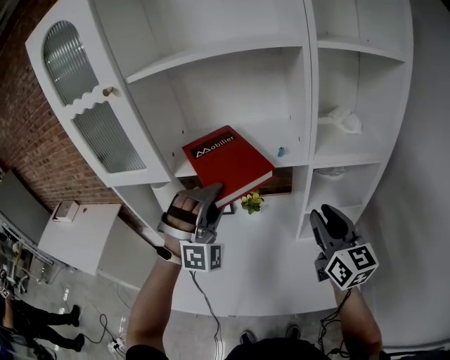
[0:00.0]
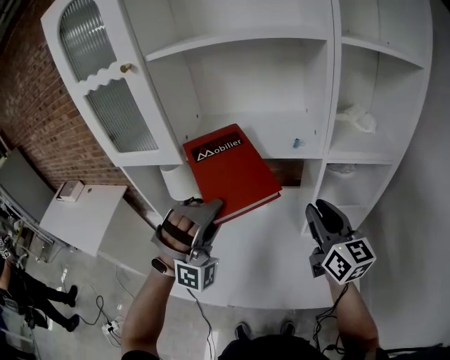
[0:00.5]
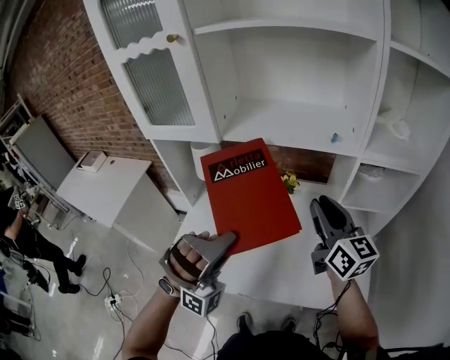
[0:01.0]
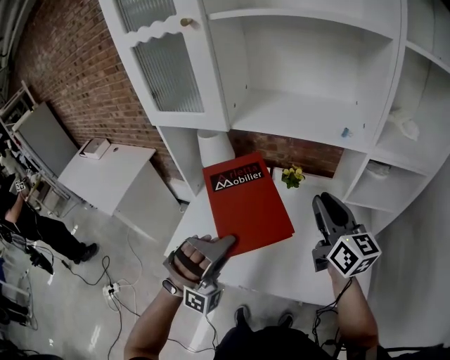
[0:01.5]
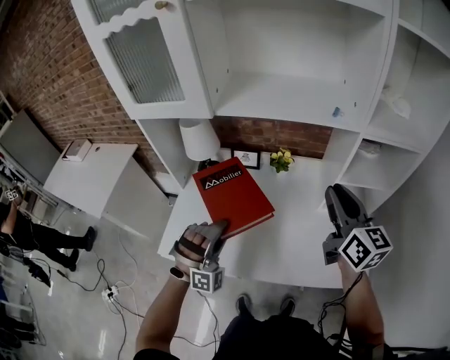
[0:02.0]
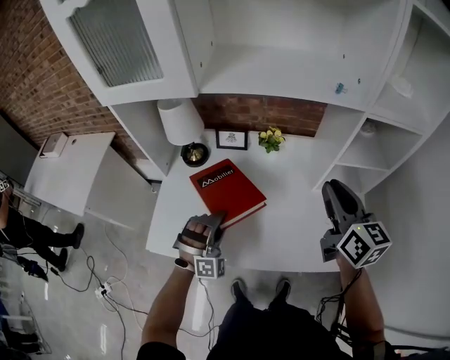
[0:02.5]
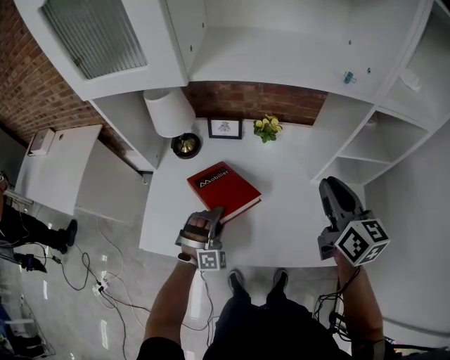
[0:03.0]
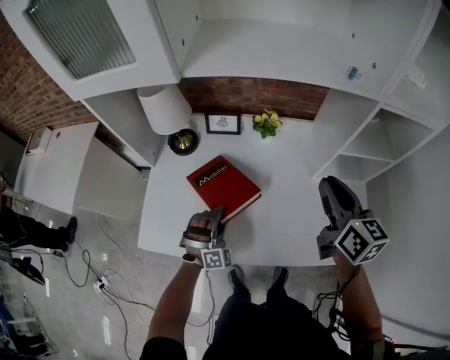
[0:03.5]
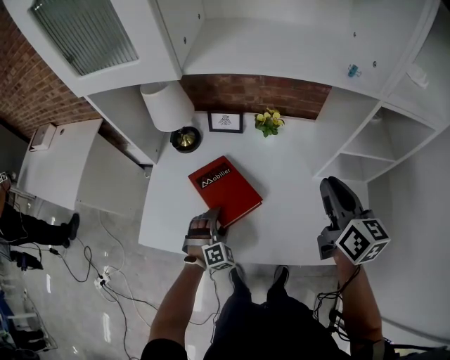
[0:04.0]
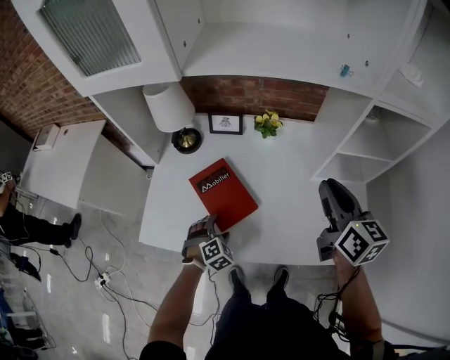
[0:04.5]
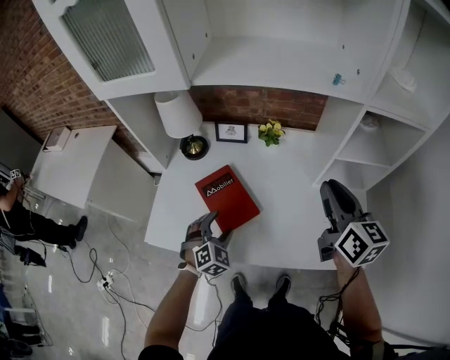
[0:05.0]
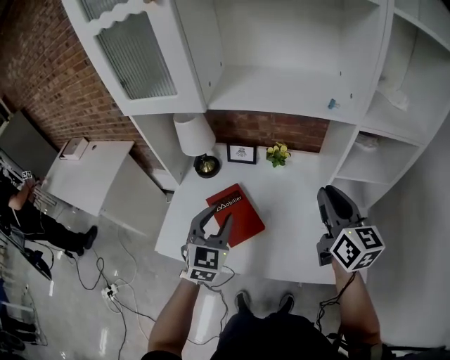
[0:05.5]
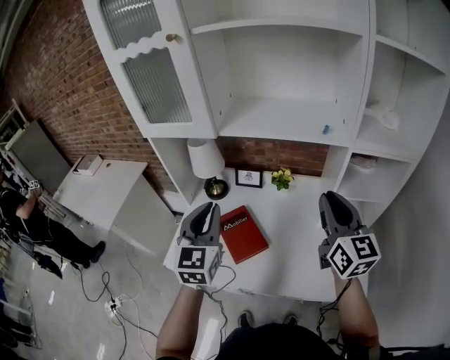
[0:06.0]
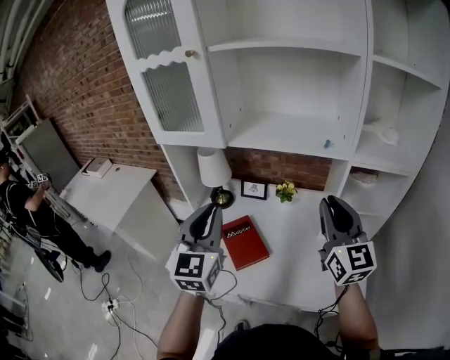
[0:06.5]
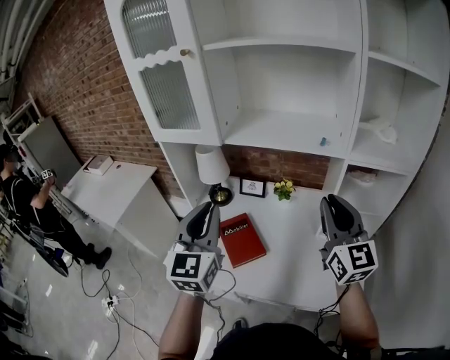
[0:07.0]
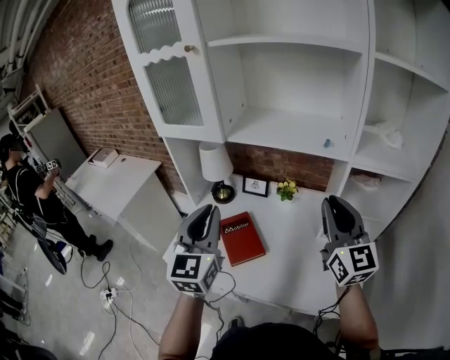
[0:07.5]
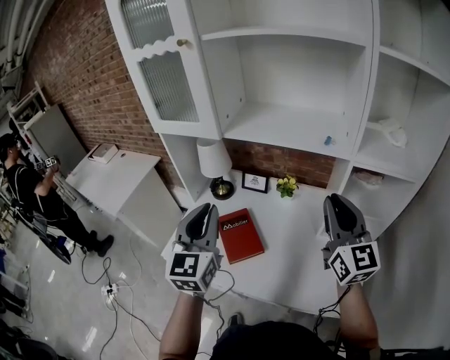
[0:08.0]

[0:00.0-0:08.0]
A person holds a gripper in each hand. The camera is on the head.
0.0 to 2.0 s: The right gripper shifts about 10 cm to the left. The left gripper goes roughly 25 cm downward, backward and to the left.
2.0 to 4.0 s: The right gripper shifts roughly 10 cm downward. The left gripper moves downward, about 25 cm, tilts its fingers roughly 30 degrees downward, and opens up.
4.0 to 6.0 s: The left gripper is displaced upward by roughly 40 cm, rotates around the line of its fingers by roughly 50 degrees, counterclockwise from behind, and closes up; the right gripper heads upward, covering about 15 cm, and changes its angle by approximately 20 degrees.
6.0 to 8.0 s: The left gripper changes place by roughly 5 cm.

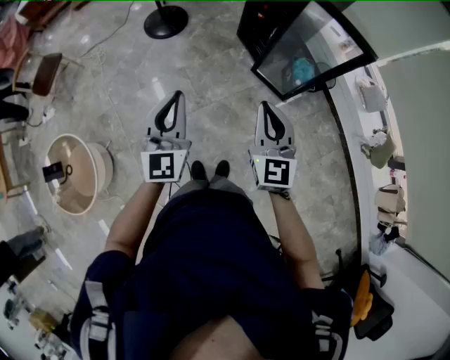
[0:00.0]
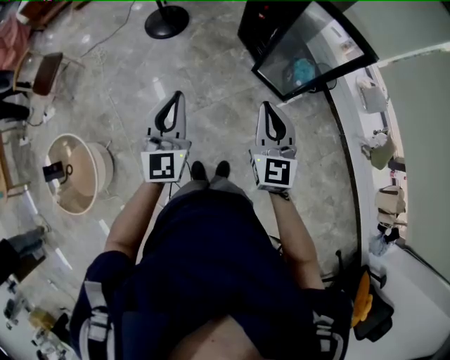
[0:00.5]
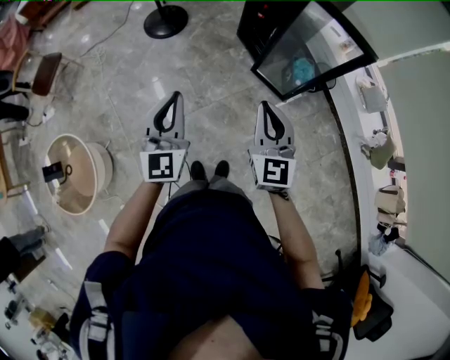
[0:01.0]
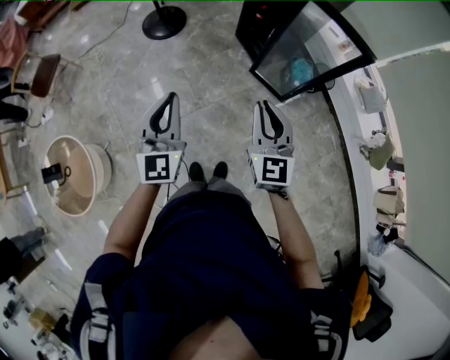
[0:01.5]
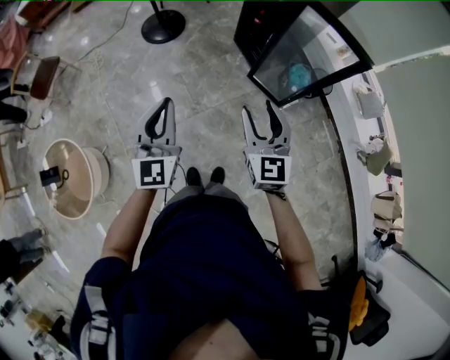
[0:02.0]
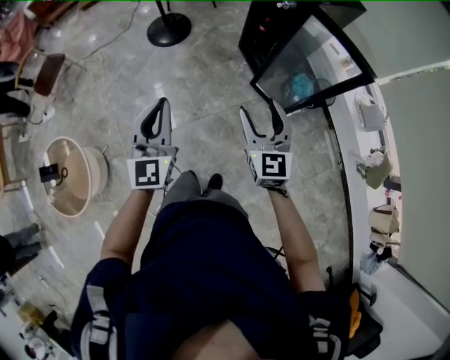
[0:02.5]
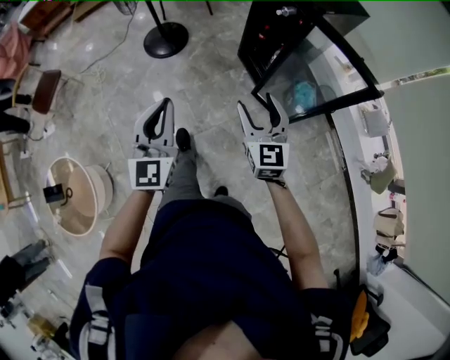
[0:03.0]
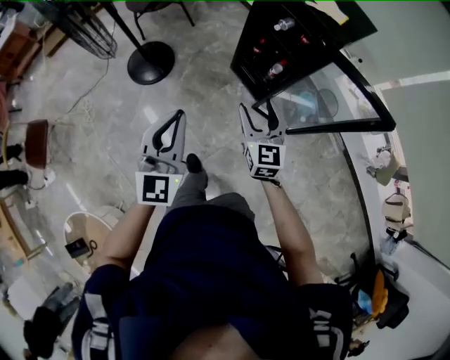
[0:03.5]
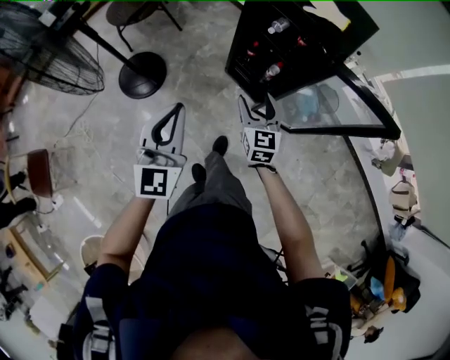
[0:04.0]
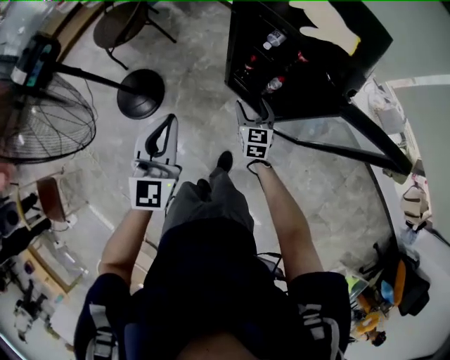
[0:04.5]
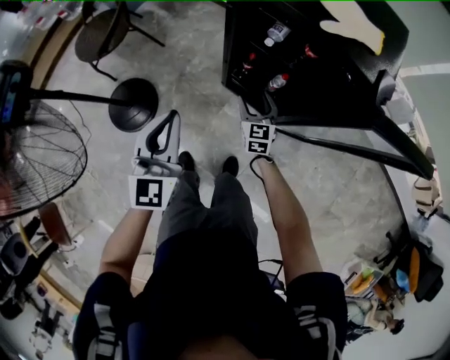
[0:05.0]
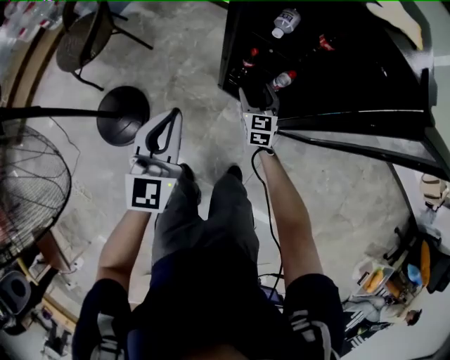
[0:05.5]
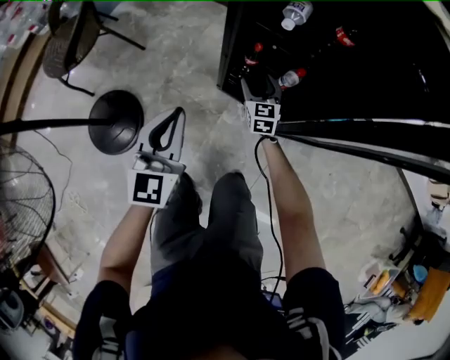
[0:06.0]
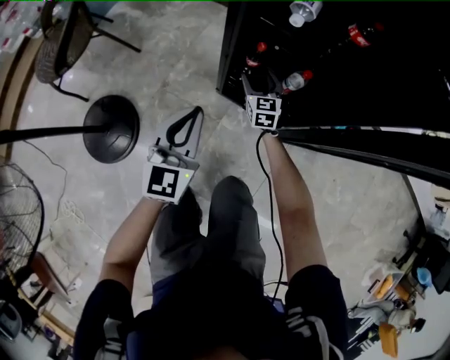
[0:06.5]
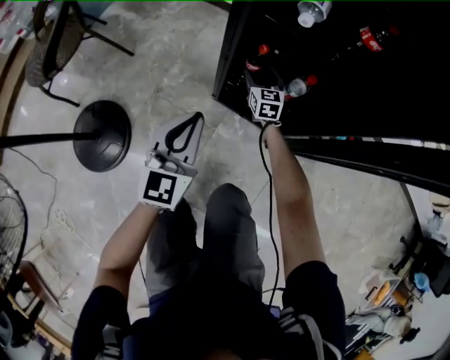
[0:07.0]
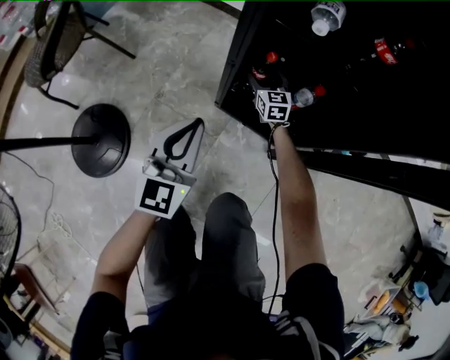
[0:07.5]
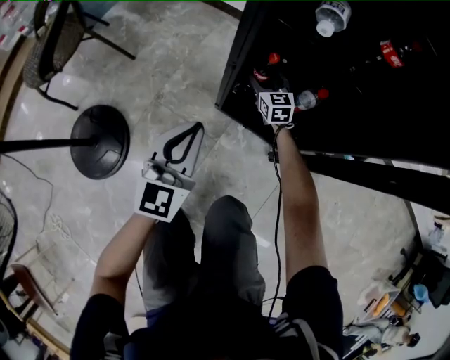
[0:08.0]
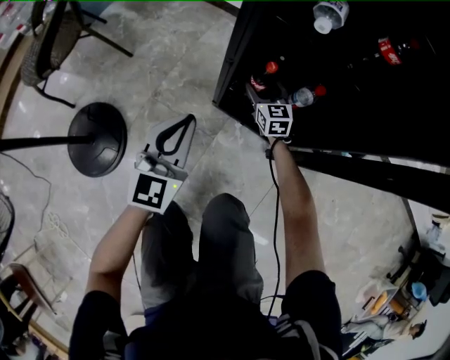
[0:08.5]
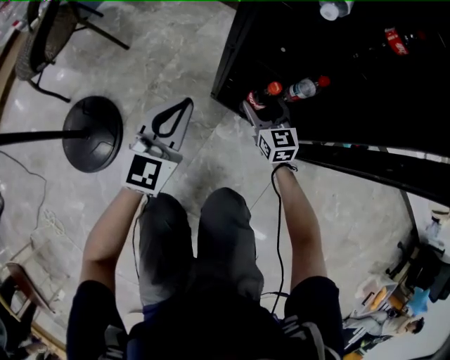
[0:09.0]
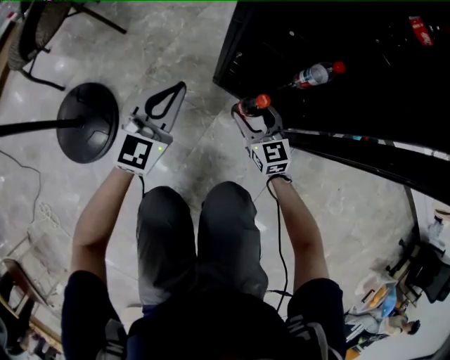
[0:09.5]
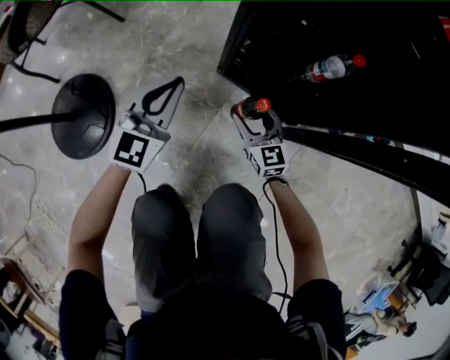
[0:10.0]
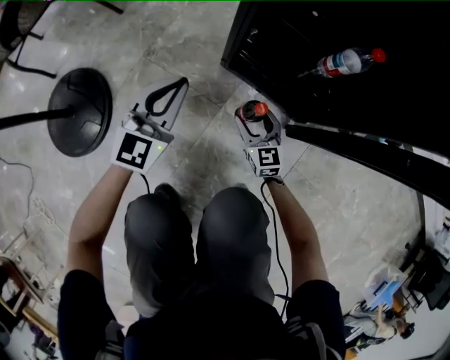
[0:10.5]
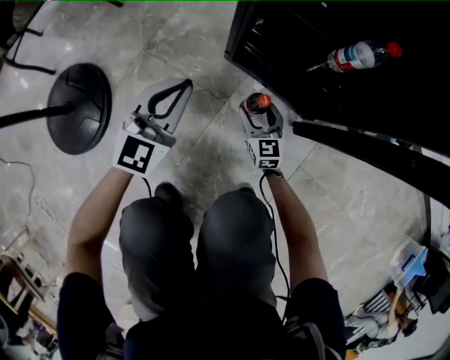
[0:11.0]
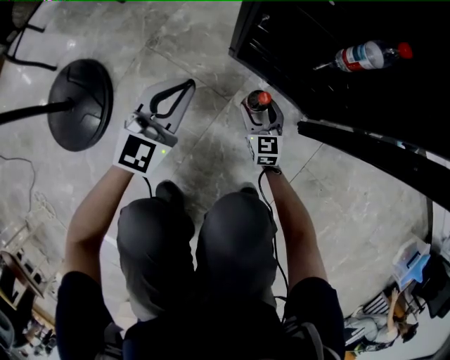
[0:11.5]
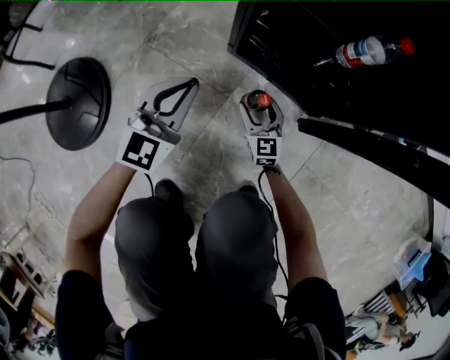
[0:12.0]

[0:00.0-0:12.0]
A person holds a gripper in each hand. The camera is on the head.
0.0 to 2.0 s: The right gripper opens its fingers.
2.0 to 4.0 s: Both grippers are carried some 50 cm. The left gripper turns by about 30 degrees. The right gripper rotates roughly 30 degrees.
4.0 to 6.0 s: Both grippers travel together downward and forward, some 50 cm.
6.0 to 8.0 s: The right gripper shifts approximately 20 cm downward and forward. Meanwhile the left gripper shifts approximately 15 cm downward.
8.0 to 10.0 s: The left gripper heads downward, covering about 15 cm. Meanwhile the right gripper shifts roughly 25 cm backward and downward.
10.0 to 12.0 s: Both grippers move downward, approximately 15 cm.

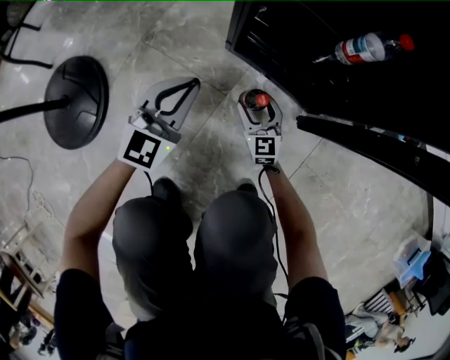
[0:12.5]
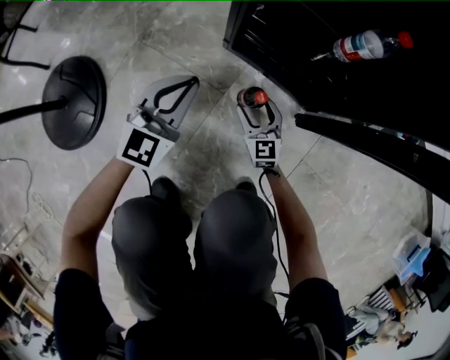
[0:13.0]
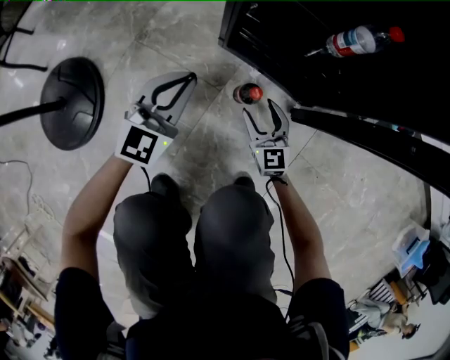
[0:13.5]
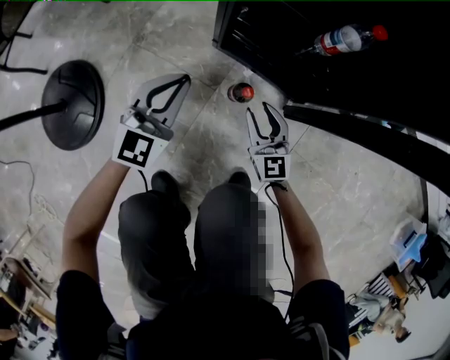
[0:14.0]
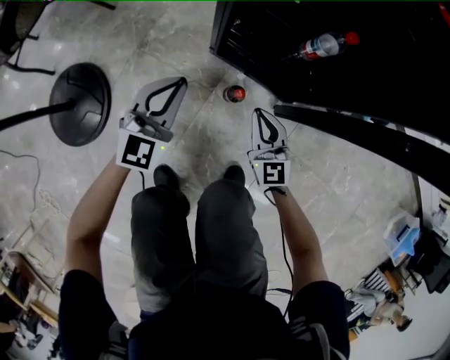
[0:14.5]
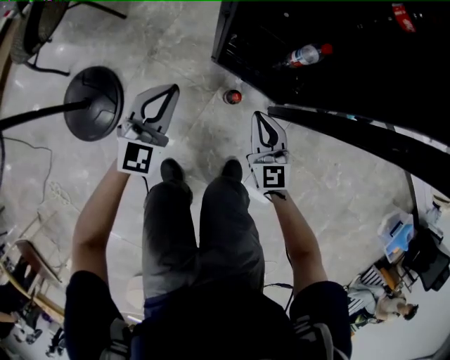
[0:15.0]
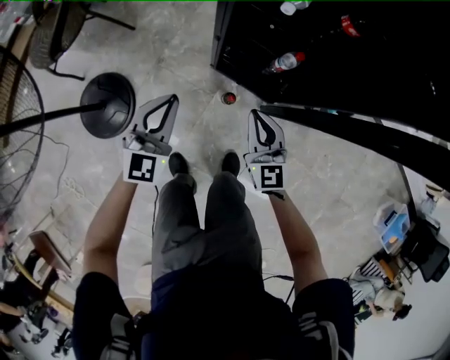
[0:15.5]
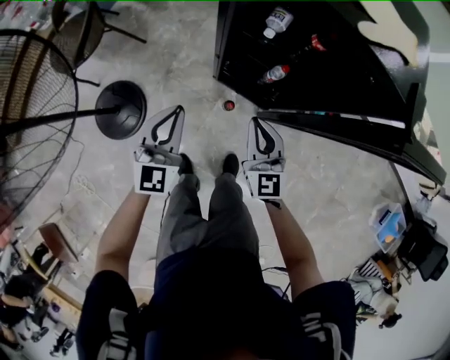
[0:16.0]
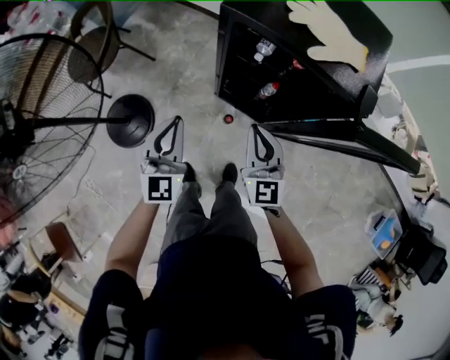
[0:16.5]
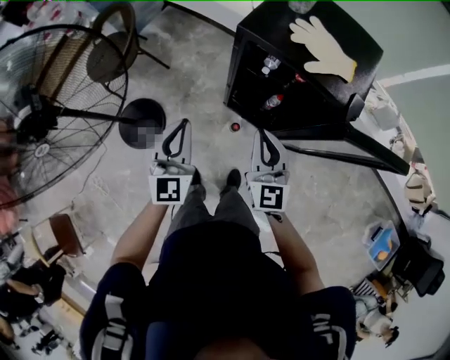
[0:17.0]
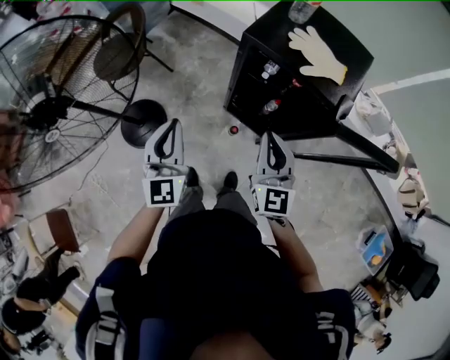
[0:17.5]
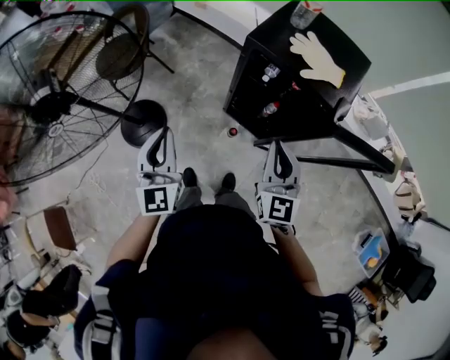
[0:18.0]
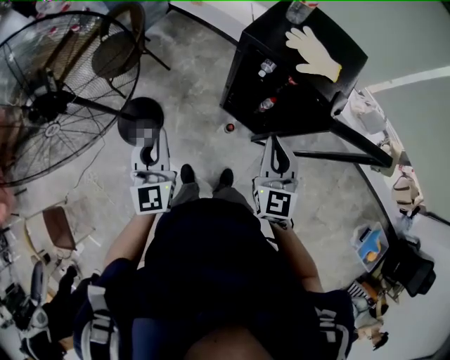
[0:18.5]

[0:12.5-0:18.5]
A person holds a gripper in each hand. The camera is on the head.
12.5 to 14.5 s: The left gripper heads upward, covering approximately 15 cm; the right gripper shifts some 25 cm upward, and closes up.
14.5 to 16.5 s: The grippers both shift upward by approximately 60 cm. The left gripper turns by some 20 degrees.
16.5 to 18.5 s: The right gripper heads upward and backward, covering roughly 20 cm; the left gripper travels upward, backward and to the left by about 20 cm.

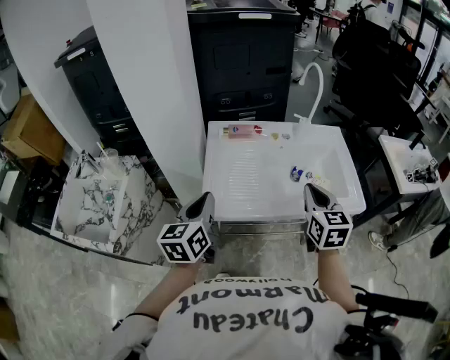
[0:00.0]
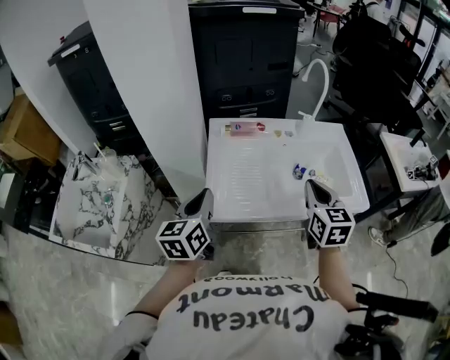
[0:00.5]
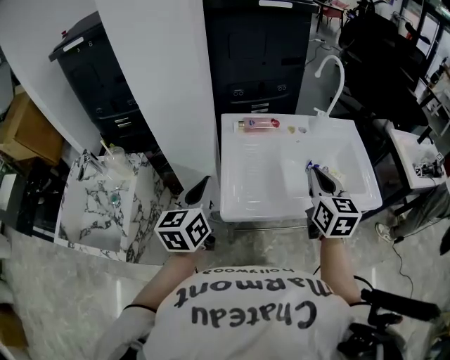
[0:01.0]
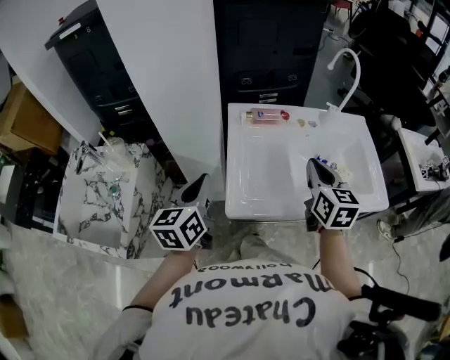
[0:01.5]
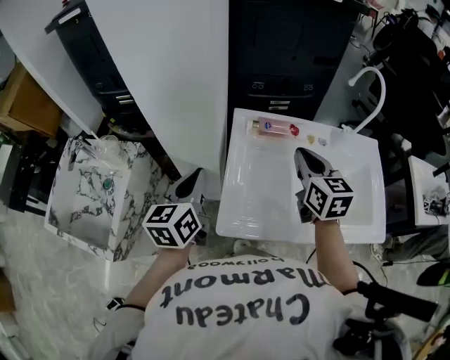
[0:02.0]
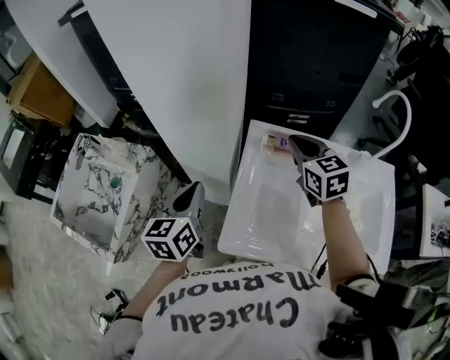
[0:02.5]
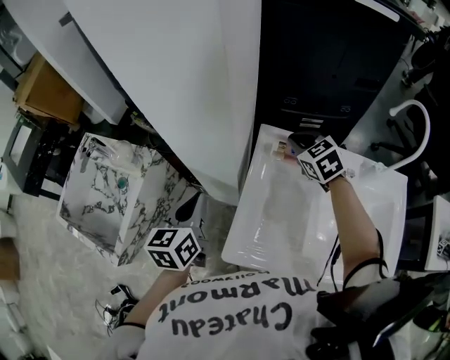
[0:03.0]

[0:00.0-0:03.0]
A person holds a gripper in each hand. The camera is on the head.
0.0 to 1.5 s: Both grippers move to the left and forward, about 15 cm.
1.5 to 3.0 s: The right gripper changes place by about 30 cm, and swivels some 50 degrees. Meanwhile the left gripper ends up approximately 10 cm from where it was.
